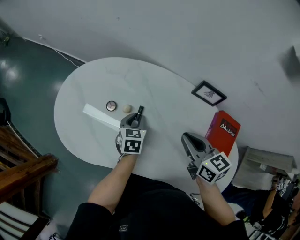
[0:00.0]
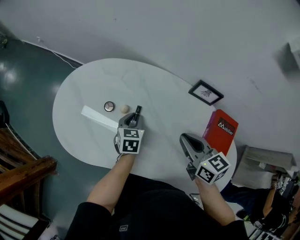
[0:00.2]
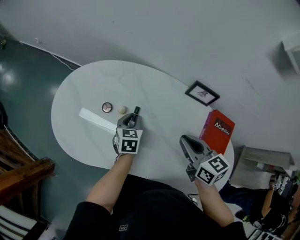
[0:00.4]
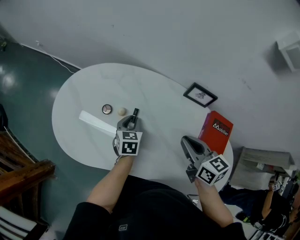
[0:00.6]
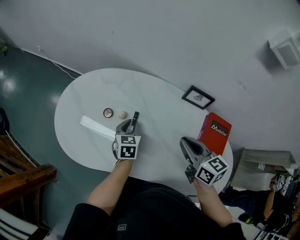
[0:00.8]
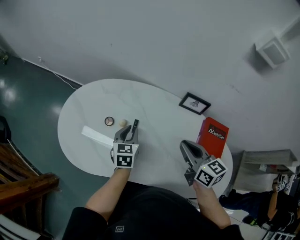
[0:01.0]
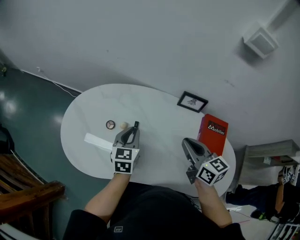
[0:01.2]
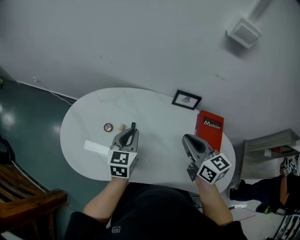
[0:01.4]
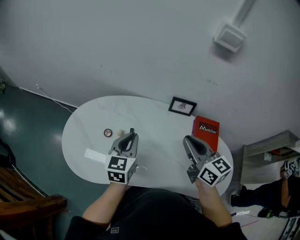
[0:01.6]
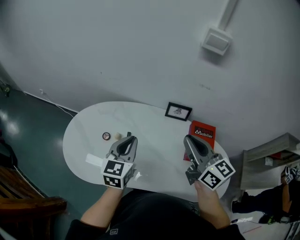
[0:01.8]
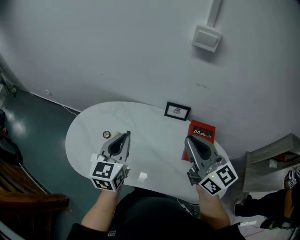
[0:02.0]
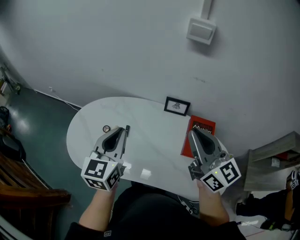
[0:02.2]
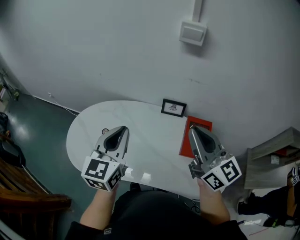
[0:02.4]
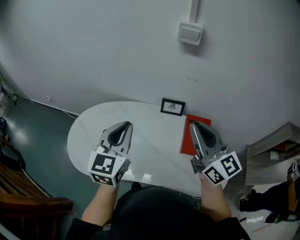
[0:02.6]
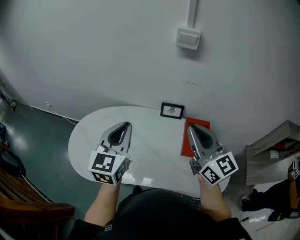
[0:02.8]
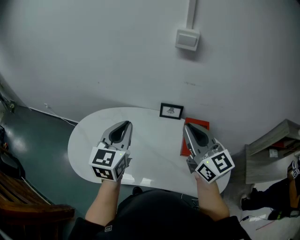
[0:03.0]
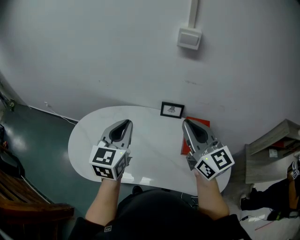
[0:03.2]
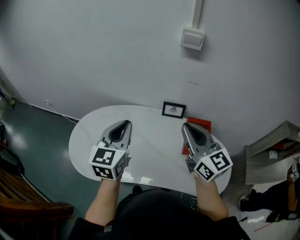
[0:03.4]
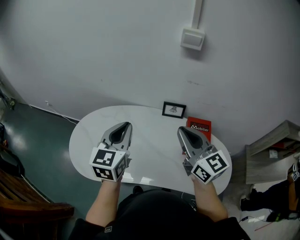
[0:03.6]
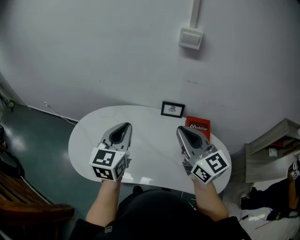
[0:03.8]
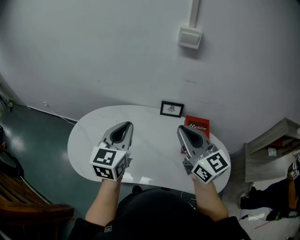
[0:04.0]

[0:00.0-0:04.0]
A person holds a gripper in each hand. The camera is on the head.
0:00.0 to 0:01.4: The right gripper heads upward, covering some 10 cm. The left gripper goes approximately 20 cm upward, and turns by approximately 20 degrees.
0:01.4 to 0:02.6: The right gripper travels upward, to the right and backward by some 20 cm, and turns by about 30 degrees, while the left gripper shifts roughly 25 cm upward and backward, and rotates approximately 20 degrees.
0:02.6 to 0:04.0: The right gripper heads to the left, covering approximately 5 cm.

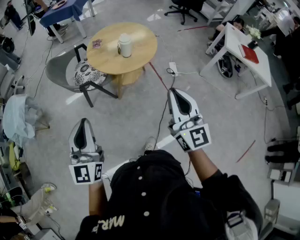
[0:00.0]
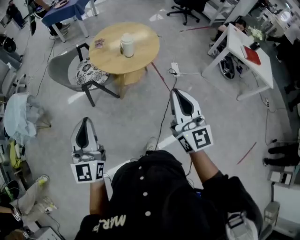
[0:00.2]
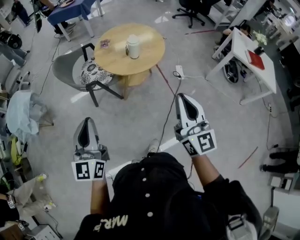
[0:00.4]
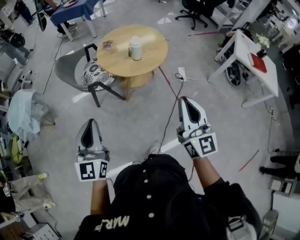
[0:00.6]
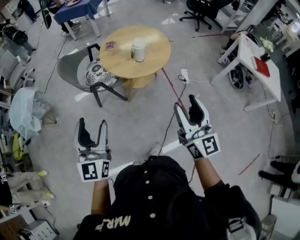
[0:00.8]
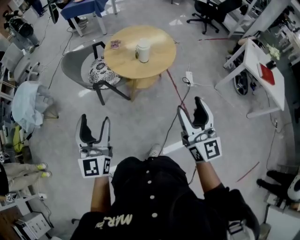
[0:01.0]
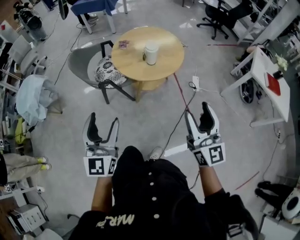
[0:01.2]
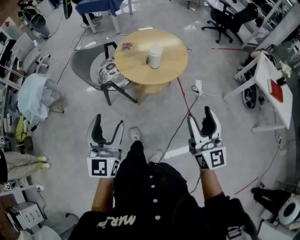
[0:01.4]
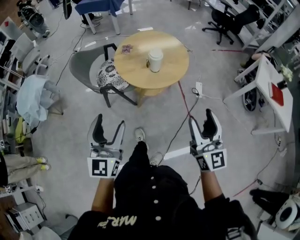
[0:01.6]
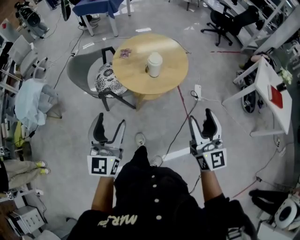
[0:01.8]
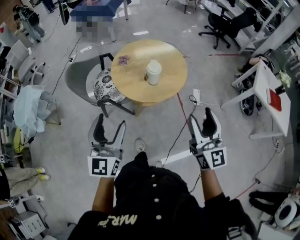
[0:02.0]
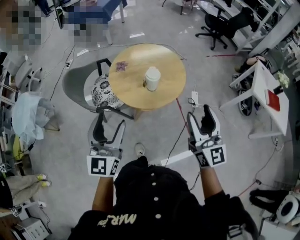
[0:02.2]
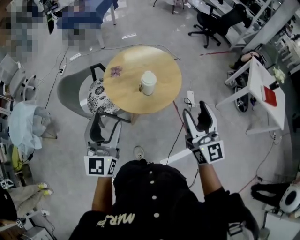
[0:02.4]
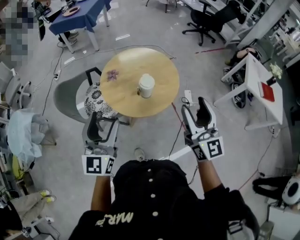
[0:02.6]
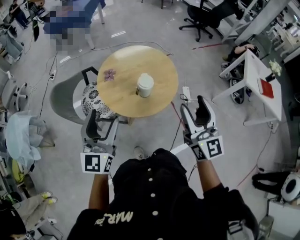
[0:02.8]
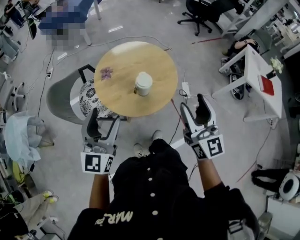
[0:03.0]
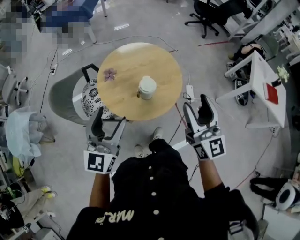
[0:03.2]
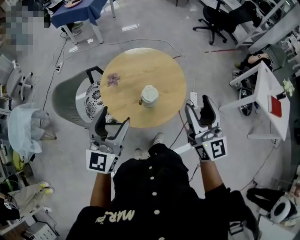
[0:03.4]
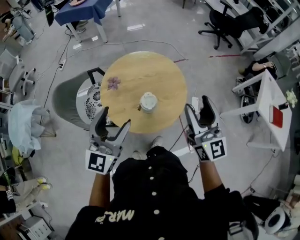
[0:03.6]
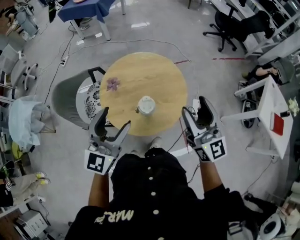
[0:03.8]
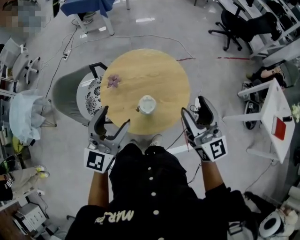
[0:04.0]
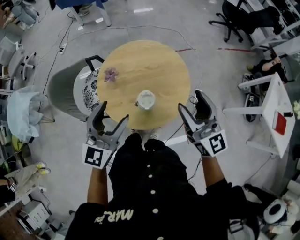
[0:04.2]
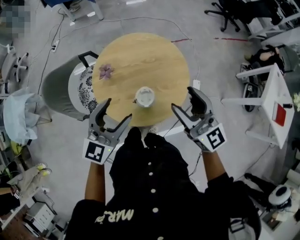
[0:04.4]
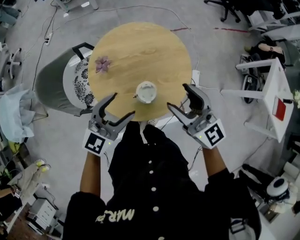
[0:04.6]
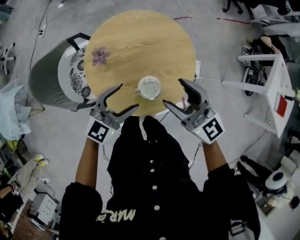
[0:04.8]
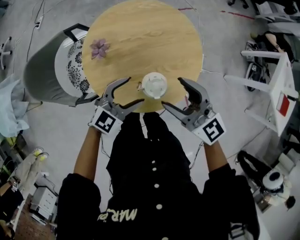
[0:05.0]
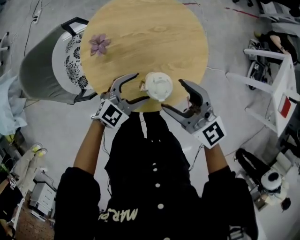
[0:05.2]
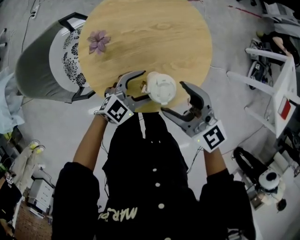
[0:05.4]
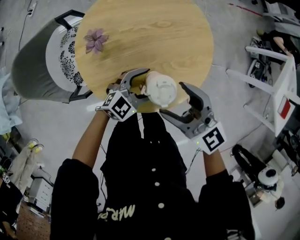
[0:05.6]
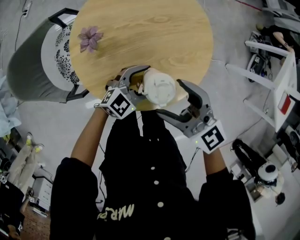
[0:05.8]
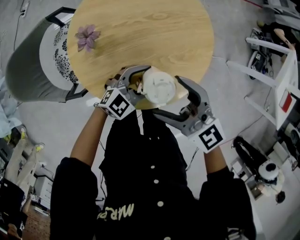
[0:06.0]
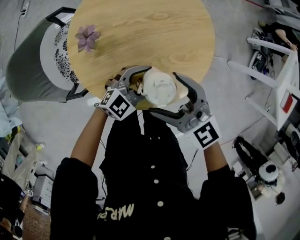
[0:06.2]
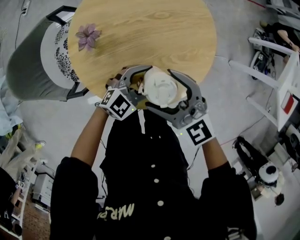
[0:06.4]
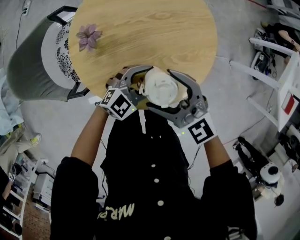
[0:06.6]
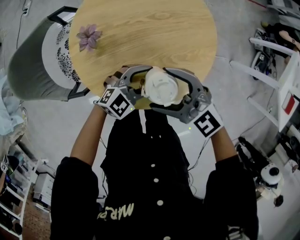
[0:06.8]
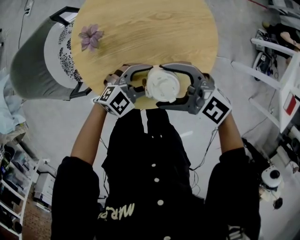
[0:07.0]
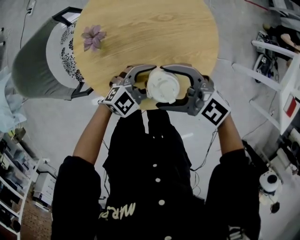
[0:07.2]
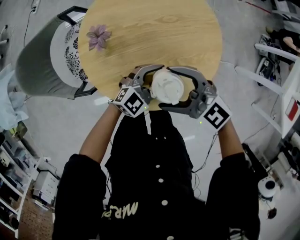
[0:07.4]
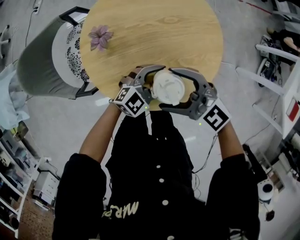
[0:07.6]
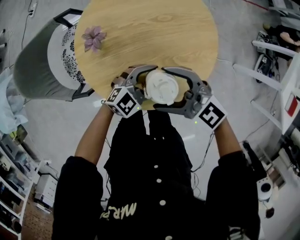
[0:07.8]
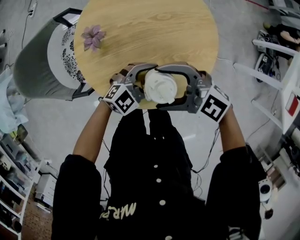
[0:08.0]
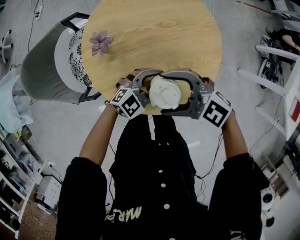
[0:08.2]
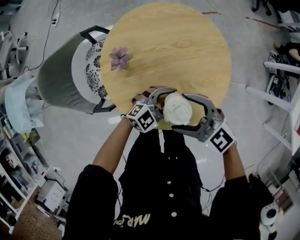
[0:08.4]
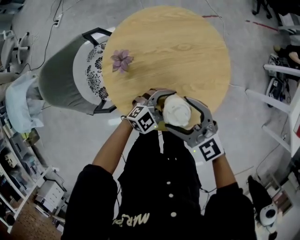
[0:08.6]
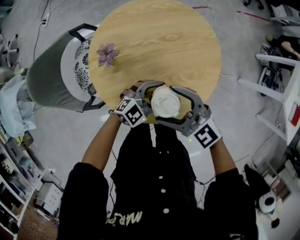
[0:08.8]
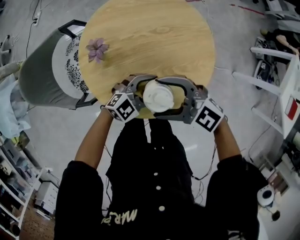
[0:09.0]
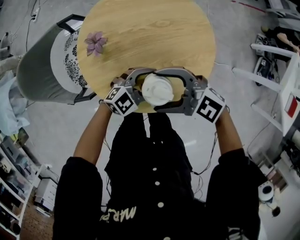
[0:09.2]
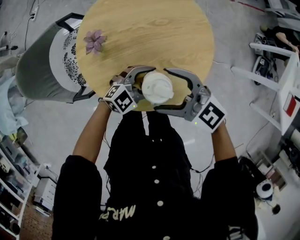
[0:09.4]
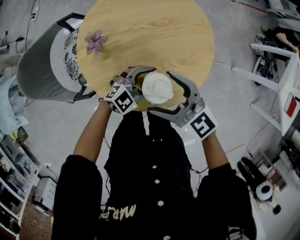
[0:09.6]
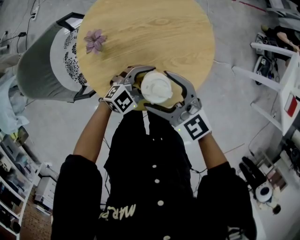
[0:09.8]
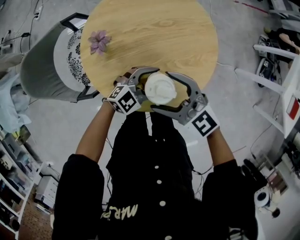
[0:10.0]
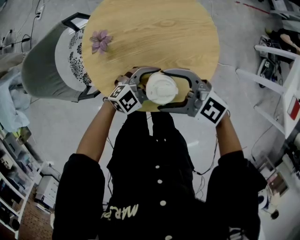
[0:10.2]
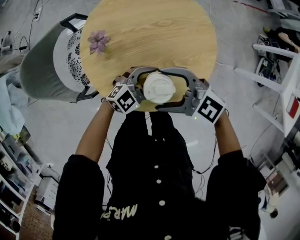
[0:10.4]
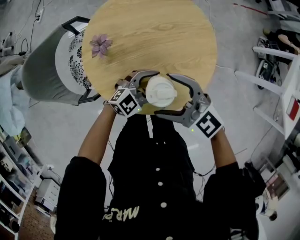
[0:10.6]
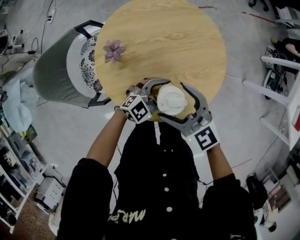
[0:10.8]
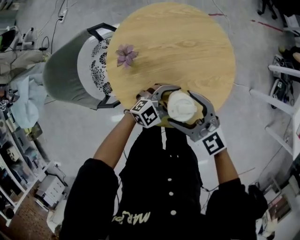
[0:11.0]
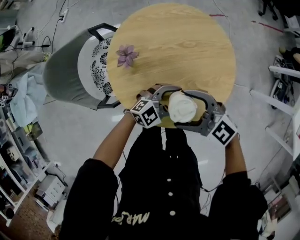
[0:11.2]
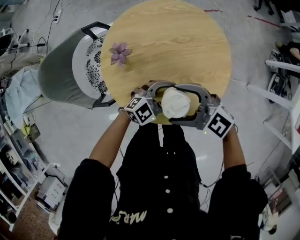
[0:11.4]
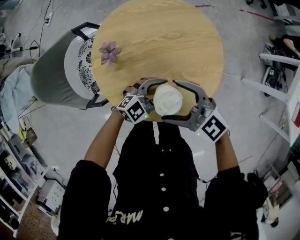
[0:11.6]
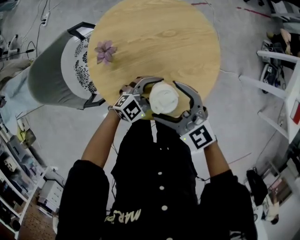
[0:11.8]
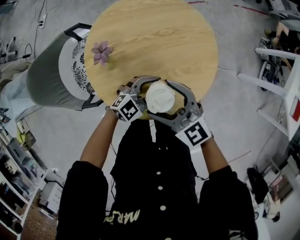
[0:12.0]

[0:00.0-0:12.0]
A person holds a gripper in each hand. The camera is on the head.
0:00.0 to 0:01.6: Both grippers move forward and to the right, approximately 10 cm. The right gripper opens its fingers; the left gripper opens its fingers.
0:01.6 to 0:03.0: The two grippers go about 25 cm forward.
0:03.0 to 0:04.4: The left gripper moves forward, downward and to the right, approximately 20 cm, and changes its angle by about 20 degrees. The right gripper is displaced forward and downward by approximately 20 cm, and turns by roughly 30 degrees.
0:04.4 to 0:06.0: The left gripper moves downward, some 30 cm, and rotates about 40 degrees, while the right gripper heads downward and to the left, covering approximately 20 cm, and rotates about 20 degrees.
0:06.0 to 0:07.6: The right gripper swivels approximately 20 degrees.
0:07.6 to 0:09.0: There are only small adjustments of the grippers.
0:10.4 to 0:12.0: The right gripper swivels roughly 30 degrees.

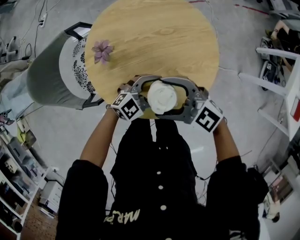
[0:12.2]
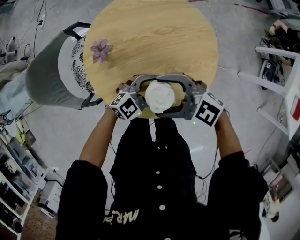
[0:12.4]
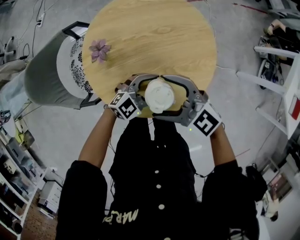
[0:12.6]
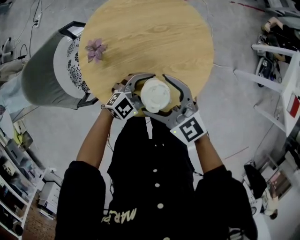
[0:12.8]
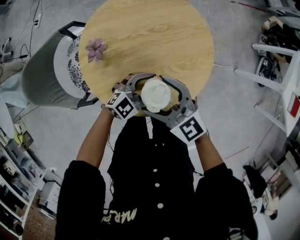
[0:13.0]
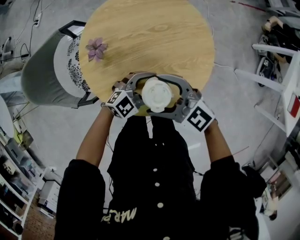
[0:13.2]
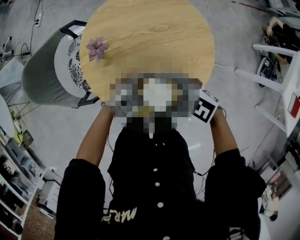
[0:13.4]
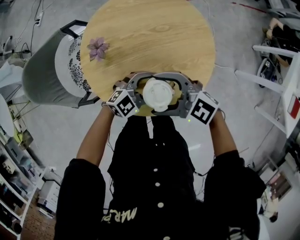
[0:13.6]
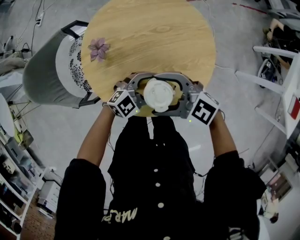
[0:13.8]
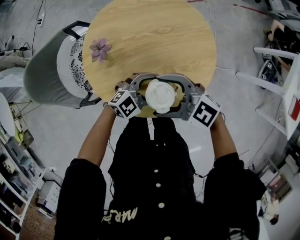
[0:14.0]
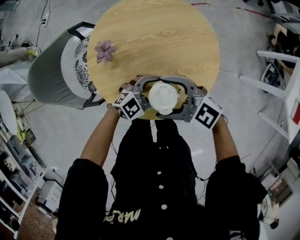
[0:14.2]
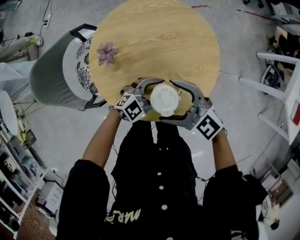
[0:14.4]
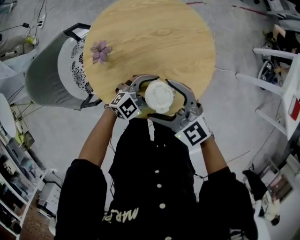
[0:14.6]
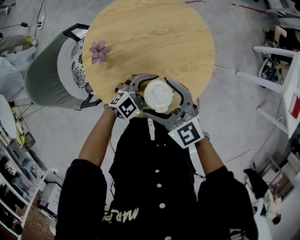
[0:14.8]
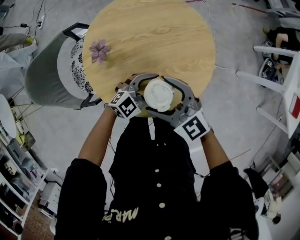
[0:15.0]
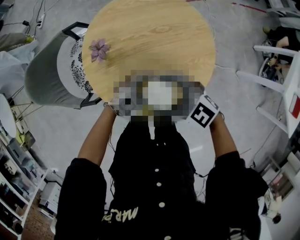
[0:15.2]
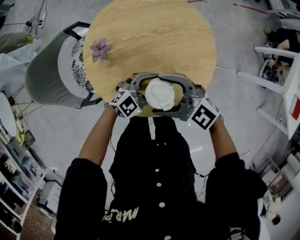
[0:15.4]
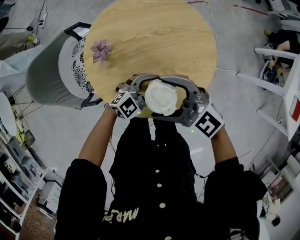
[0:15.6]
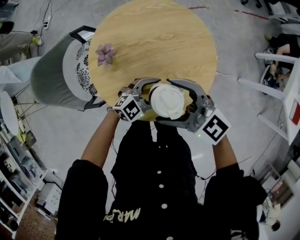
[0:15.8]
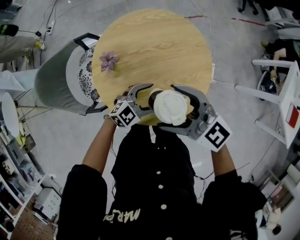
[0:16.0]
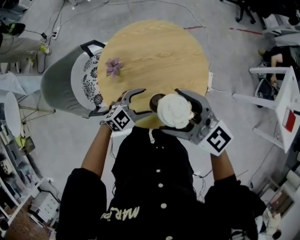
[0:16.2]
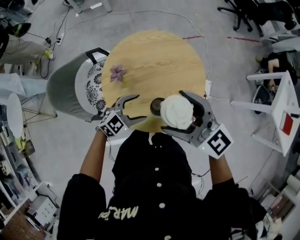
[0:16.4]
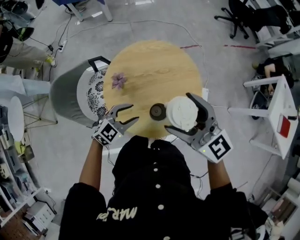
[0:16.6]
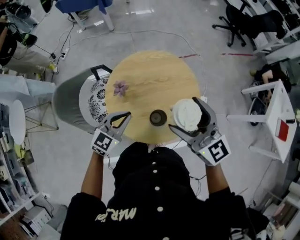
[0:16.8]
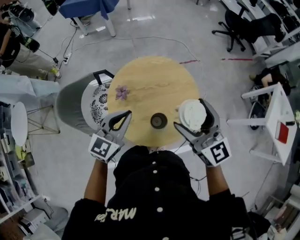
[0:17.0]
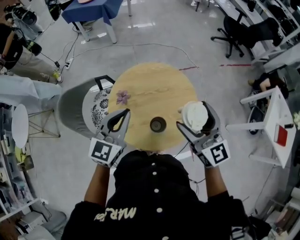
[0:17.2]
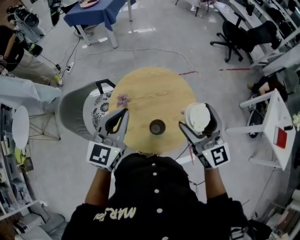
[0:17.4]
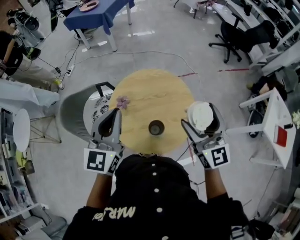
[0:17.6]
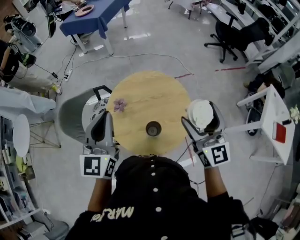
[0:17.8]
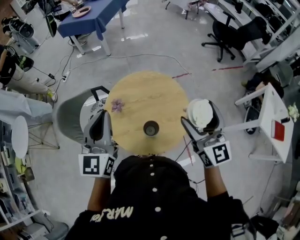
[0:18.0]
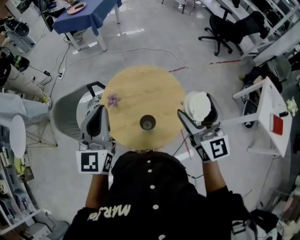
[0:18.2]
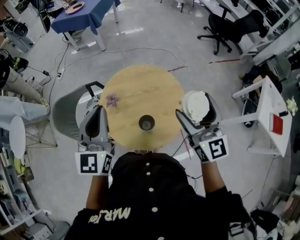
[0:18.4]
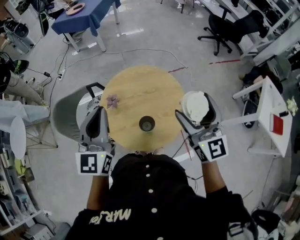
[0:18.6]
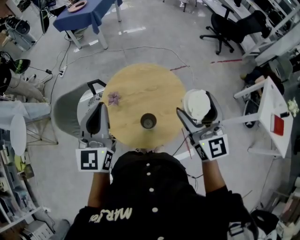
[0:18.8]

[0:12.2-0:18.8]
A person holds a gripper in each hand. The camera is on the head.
0:15.4 to 0:17.2: The two grippers go some 30 cm upward. The right gripper changes its angle by about 50 degrees. Meanwhile the left gripper changes its angle by some 50 degrees, and closes its fingers.
0:17.2 to 0:18.8: The left gripper shifts about 10 cm upward, and changes its angle by about 20 degrees. The right gripper heads to the right and upward, covering some 10 cm.

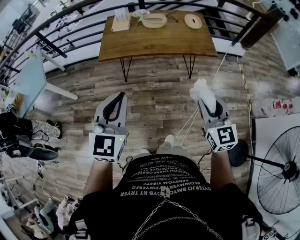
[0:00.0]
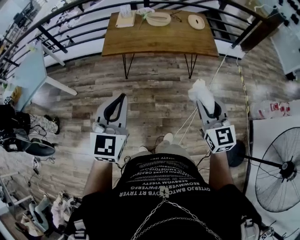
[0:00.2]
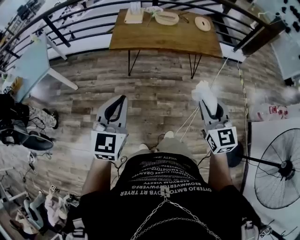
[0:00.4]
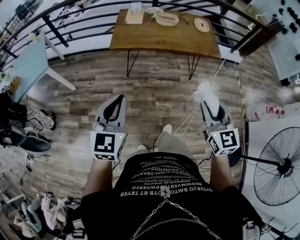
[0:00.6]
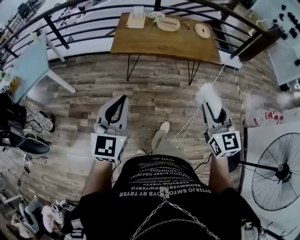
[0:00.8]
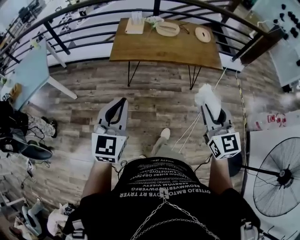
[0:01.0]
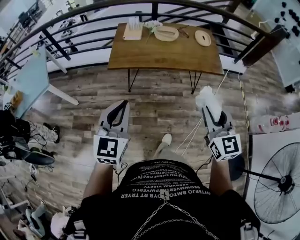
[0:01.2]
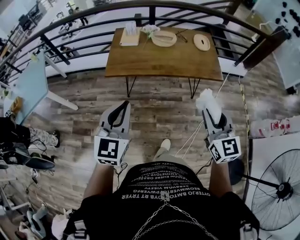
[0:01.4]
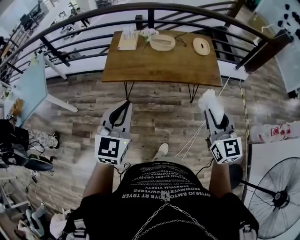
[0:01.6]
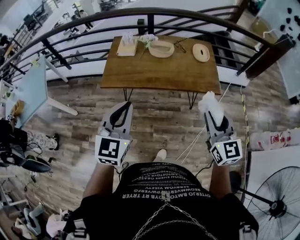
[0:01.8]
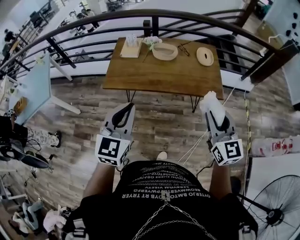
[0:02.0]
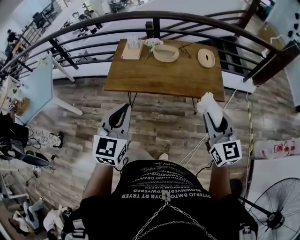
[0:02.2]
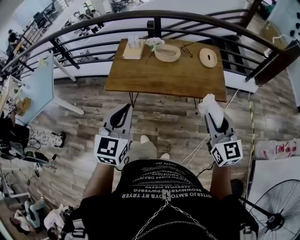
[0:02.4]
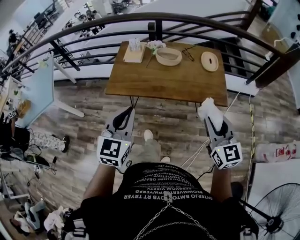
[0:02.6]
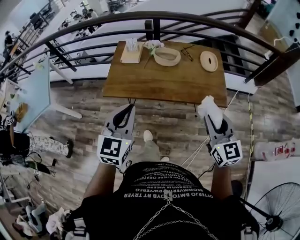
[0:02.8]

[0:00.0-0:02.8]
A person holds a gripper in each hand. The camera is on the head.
0:00.0 to 0:01.4: The right gripper shifts roughly 10 cm forward. The left gripper shifts about 10 cm forward and to the left.
0:01.4 to 0:02.8: The two grippers go about 15 cm forward and to the right.
